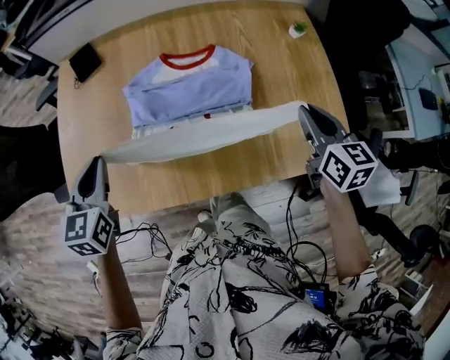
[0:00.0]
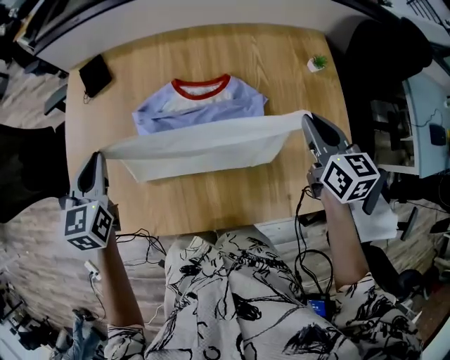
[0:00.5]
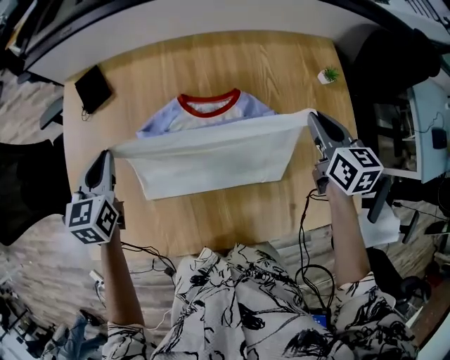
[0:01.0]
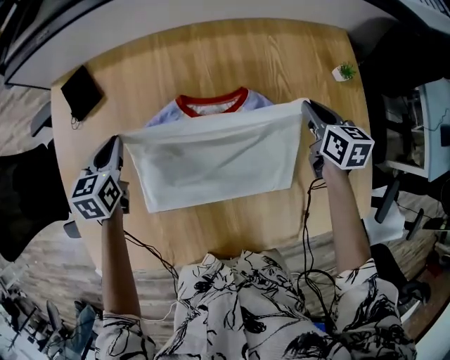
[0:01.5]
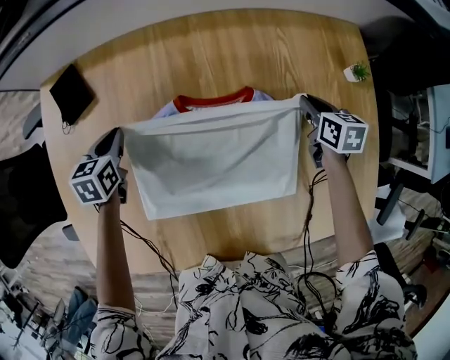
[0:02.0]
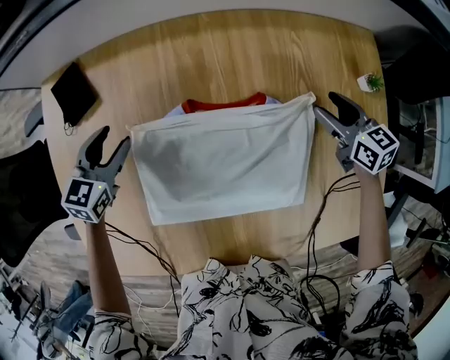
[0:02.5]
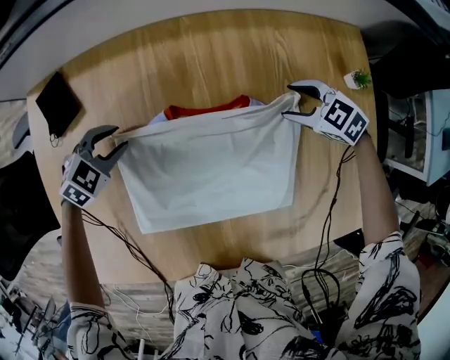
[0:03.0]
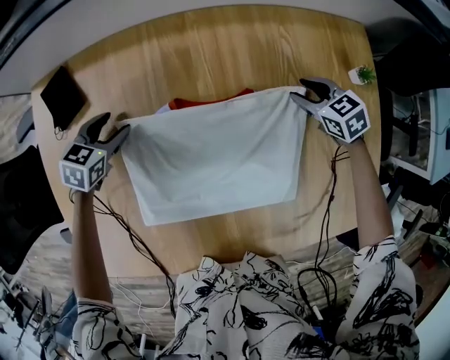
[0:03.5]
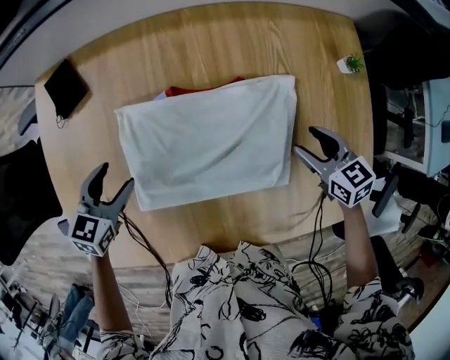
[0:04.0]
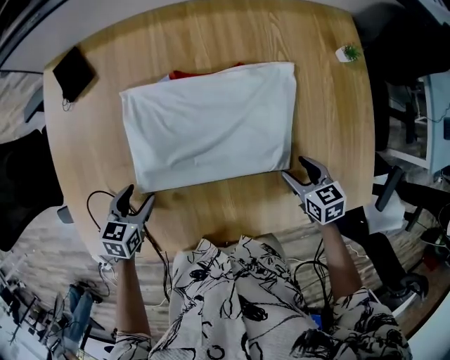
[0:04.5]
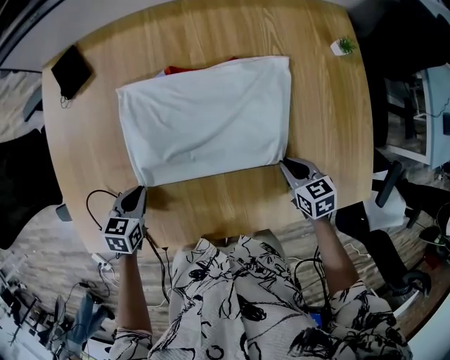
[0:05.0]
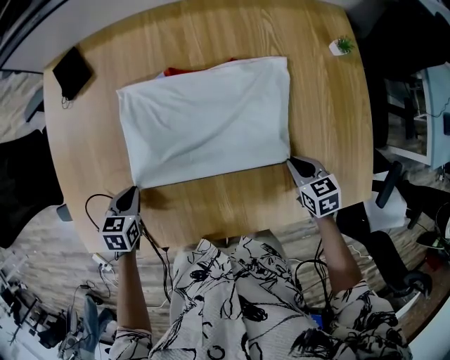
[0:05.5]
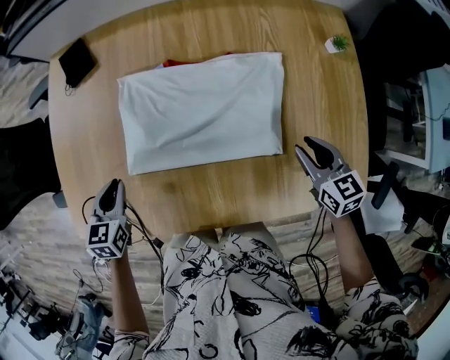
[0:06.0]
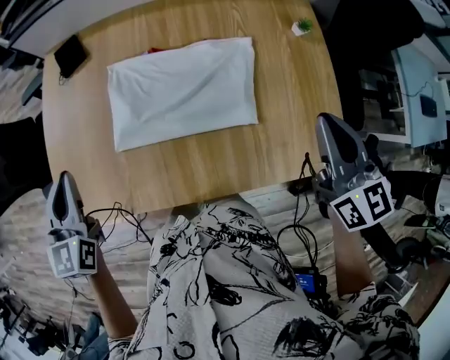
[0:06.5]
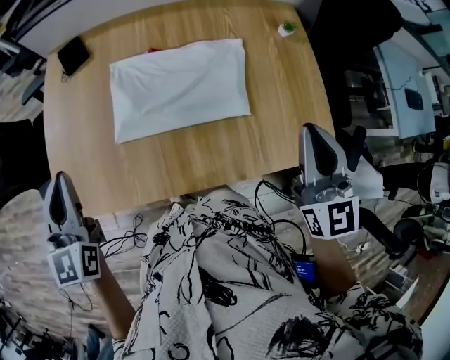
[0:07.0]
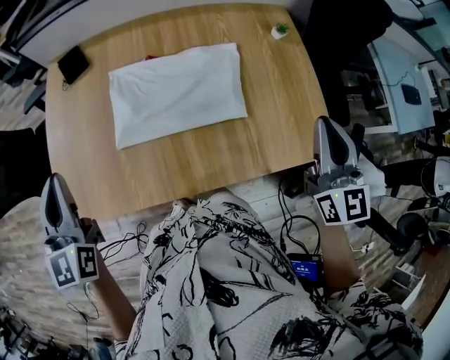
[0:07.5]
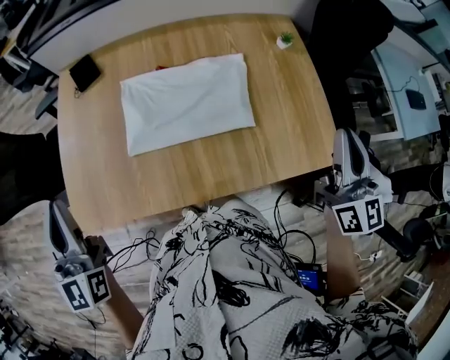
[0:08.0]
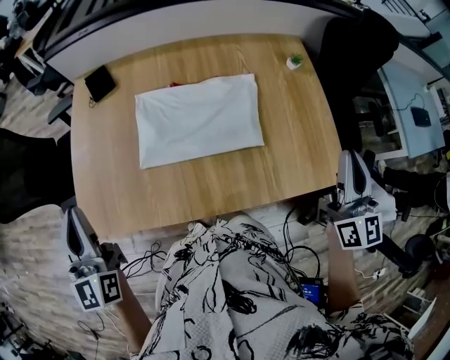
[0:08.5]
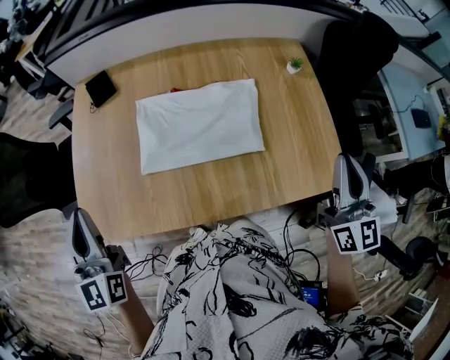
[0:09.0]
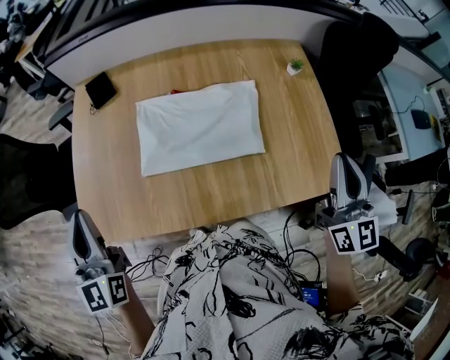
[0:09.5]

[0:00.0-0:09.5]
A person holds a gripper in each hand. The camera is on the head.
0:00.0 to 0:02.0: The grippers both shift forward and downward by approximately 40 cm. The left gripper swivels some 20 degrees, while the right gripper turns by some 20 degrees.
0:02.0 to 0:04.0: The grippers both shift backward and upward by some 15 cm. The left gripper changes its angle by about 20 degrees, and opens its fingers, while the right gripper swivels some 30 degrees, and opens its fingers.
0:04.0 to 0:05.5: Both grippers move backward and downward, roughly 15 cm. The left gripper rotates roughly 20 degrees, and closes. Meanwhile the right gripper closes.
0:05.5 to 0:07.5: Both grippers travel together upward, roughly 35 cm. The left gripper tips its fingers upward by about 50 degrees. The right gripper tilts its fingers approximately 50 degrees upward.

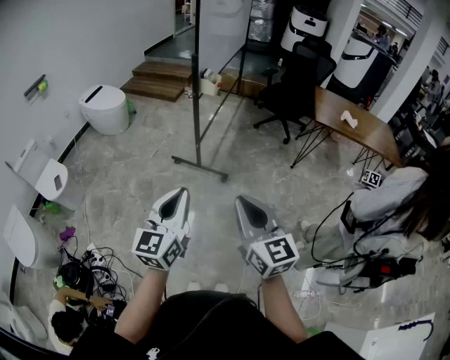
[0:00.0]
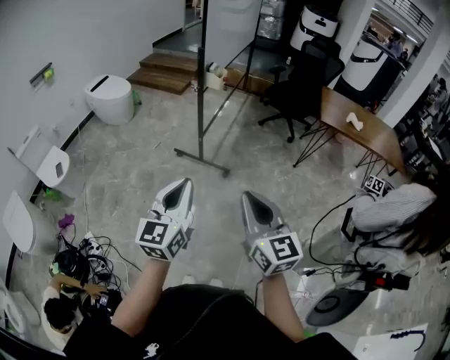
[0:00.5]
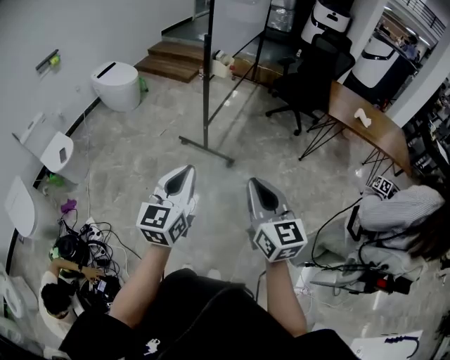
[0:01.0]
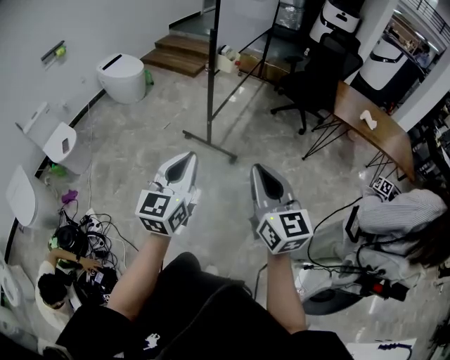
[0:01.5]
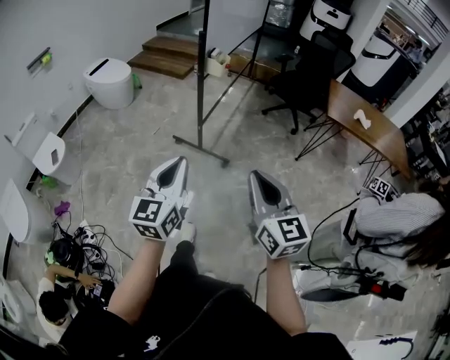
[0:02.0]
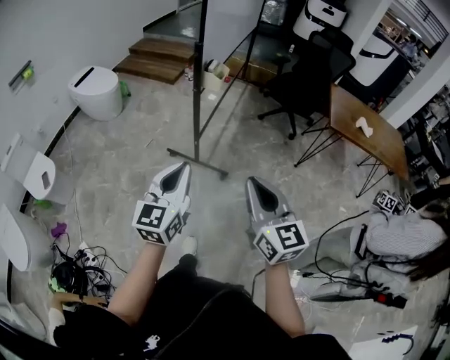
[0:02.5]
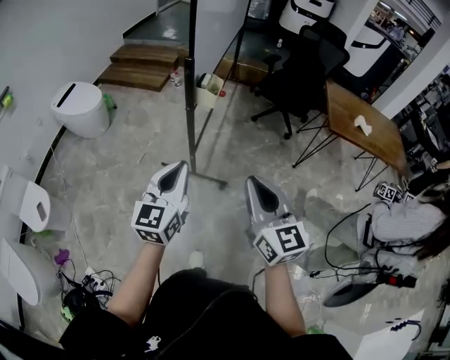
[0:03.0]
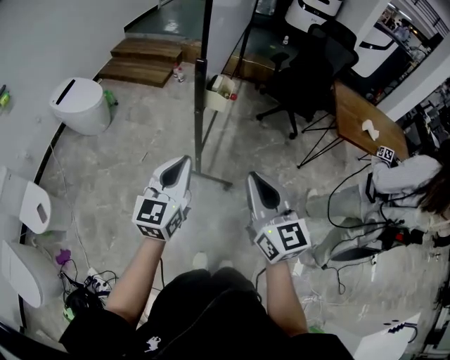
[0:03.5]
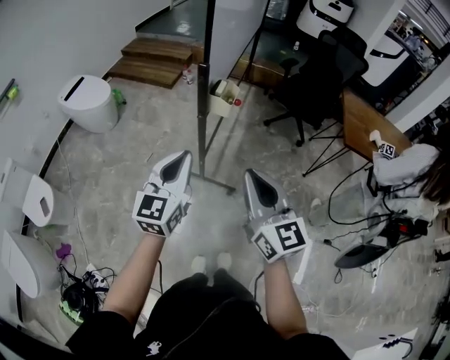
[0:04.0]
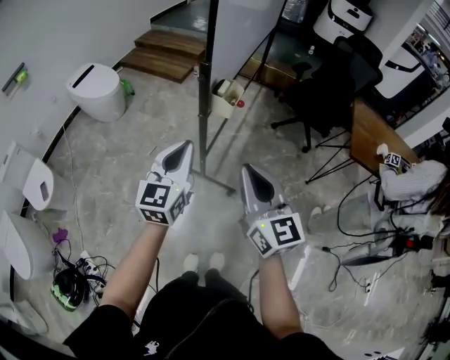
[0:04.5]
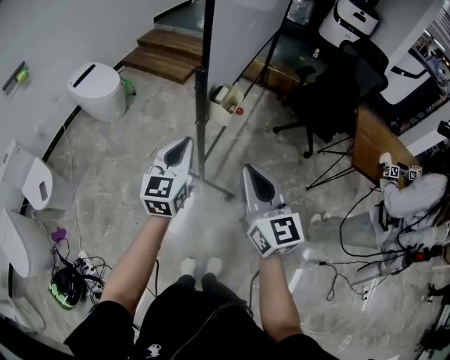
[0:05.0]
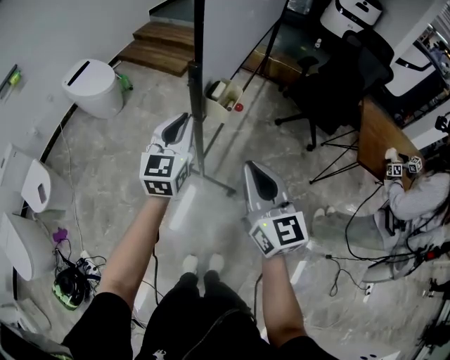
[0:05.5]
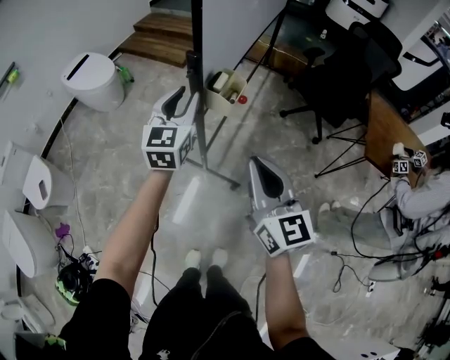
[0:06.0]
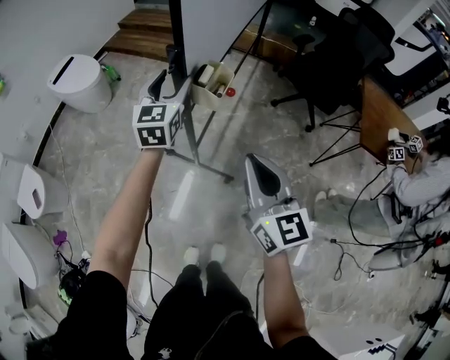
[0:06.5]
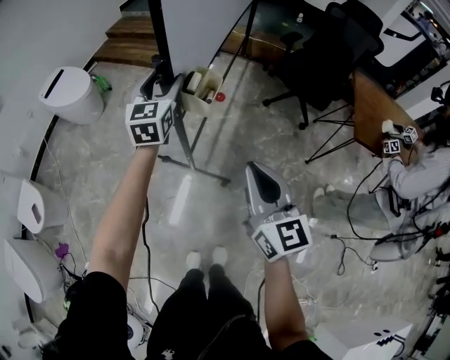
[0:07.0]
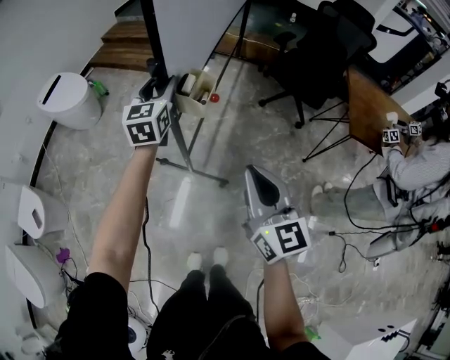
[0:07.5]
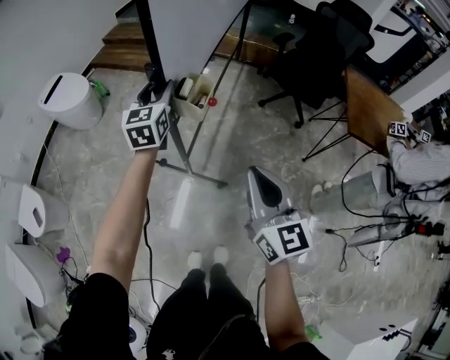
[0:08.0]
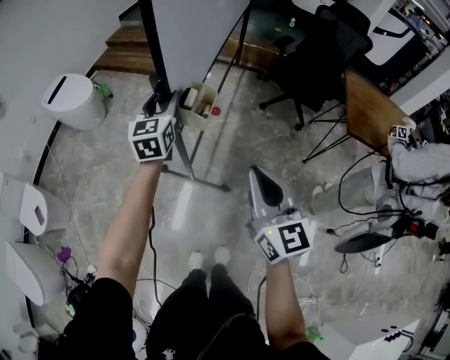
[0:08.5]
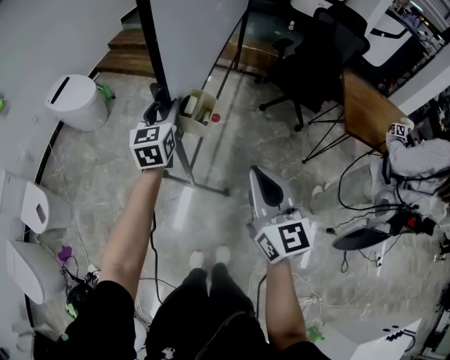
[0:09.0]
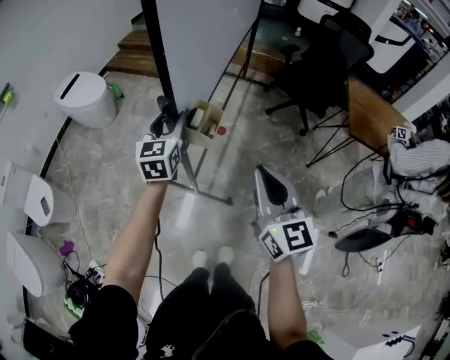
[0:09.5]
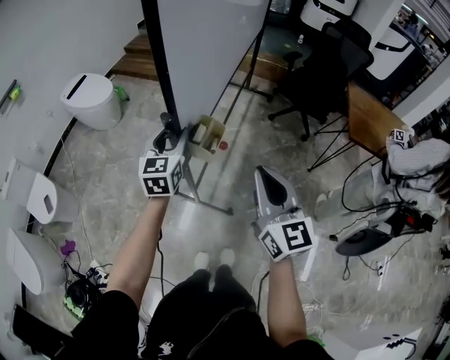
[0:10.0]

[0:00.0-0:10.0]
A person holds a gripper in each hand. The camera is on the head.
0:00.0 to 0:02.0: The left gripper shifts some 10 cm forward, while the right gripper travels forward and to the right by some 10 cm.
0:02.0 to 0:04.0: Both grippers move forward, roughly 35 cm.
0:04.0 to 0:06.0: The left gripper travels forward by some 25 cm, and opens up. The right gripper heads forward, downward and to the right, covering approximately 15 cm.
0:06.0 to 0:08.0: The right gripper ends up approximately 5 cm from where it was. The left gripper is displaced forward by roughly 5 cm.
0:08.0 to 0:10.0: The right gripper moves backward and to the left, some 10 cm, while the left gripper is displaced backward by roughly 20 cm.

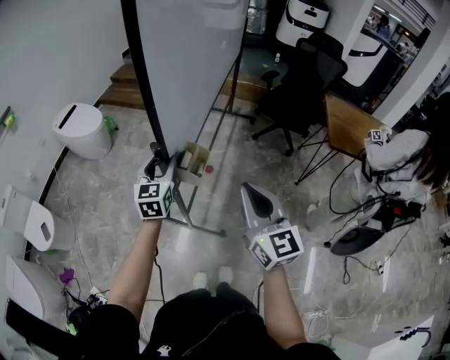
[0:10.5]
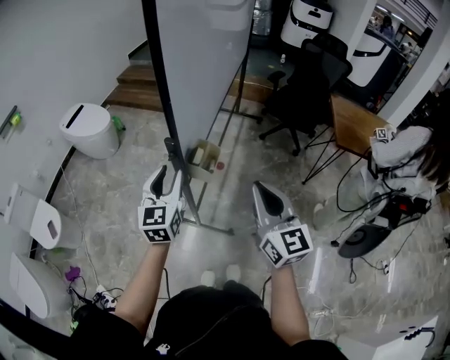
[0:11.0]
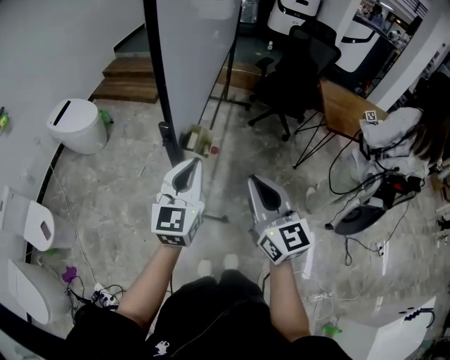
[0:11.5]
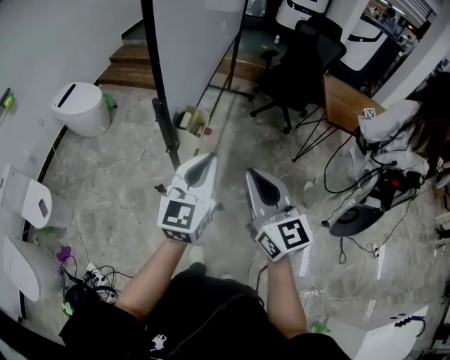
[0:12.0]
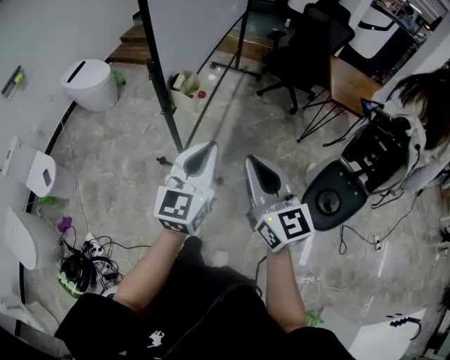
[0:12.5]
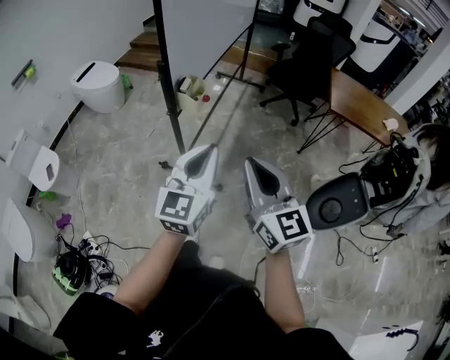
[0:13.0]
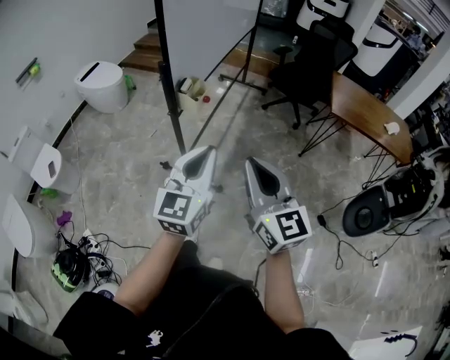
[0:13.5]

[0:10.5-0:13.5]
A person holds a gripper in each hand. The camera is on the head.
0:10.5 to 0:12.0: The left gripper heads backward, to the right and upward, covering about 25 cm, turns by about 20 degrees, and closes; the right gripper is displaced backward by about 10 cm.
0:12.0 to 0:13.5: The left gripper heads backward, covering approximately 15 cm. The right gripper moves backward and to the right, some 15 cm.

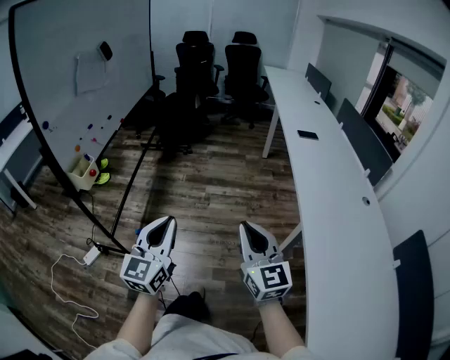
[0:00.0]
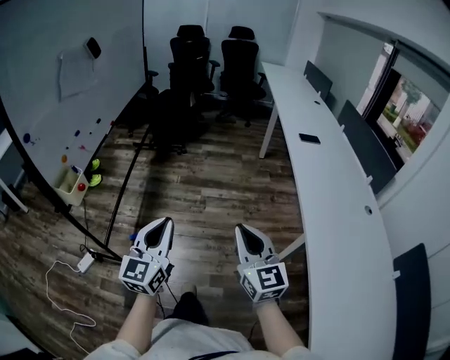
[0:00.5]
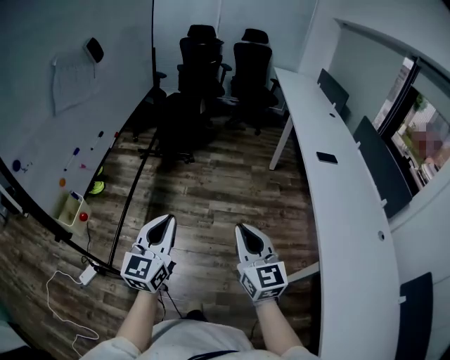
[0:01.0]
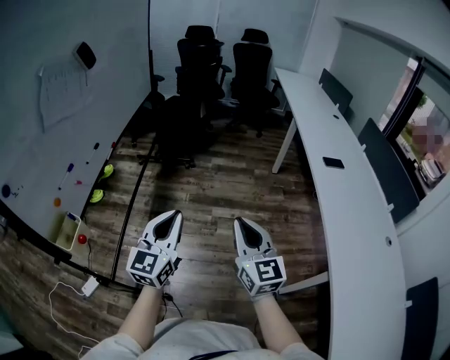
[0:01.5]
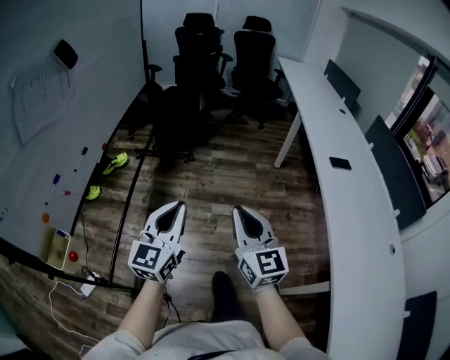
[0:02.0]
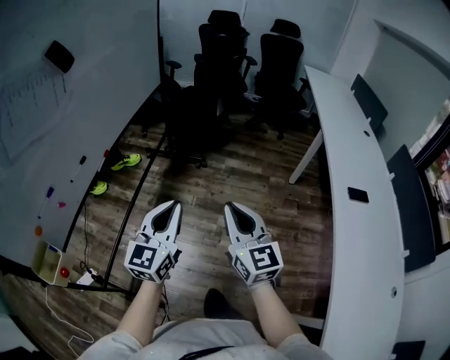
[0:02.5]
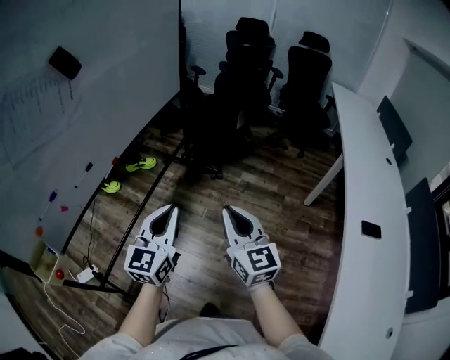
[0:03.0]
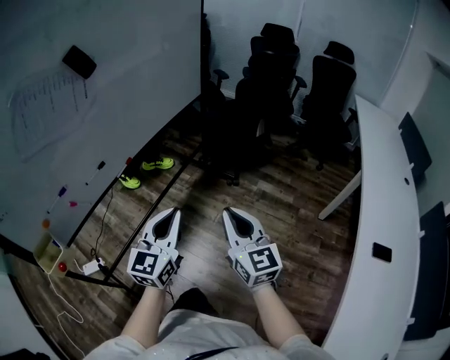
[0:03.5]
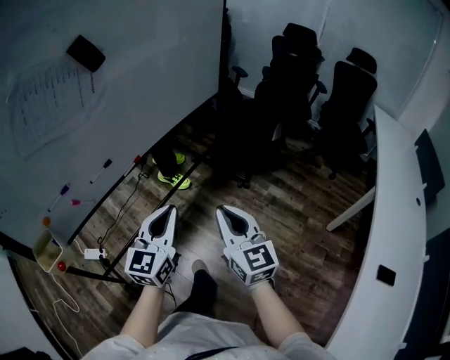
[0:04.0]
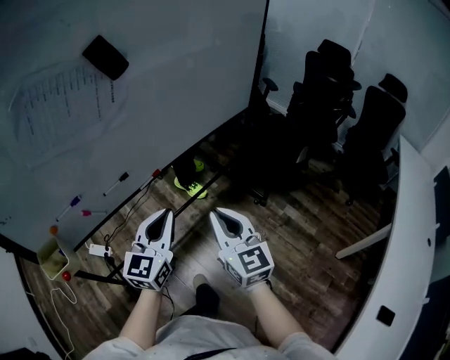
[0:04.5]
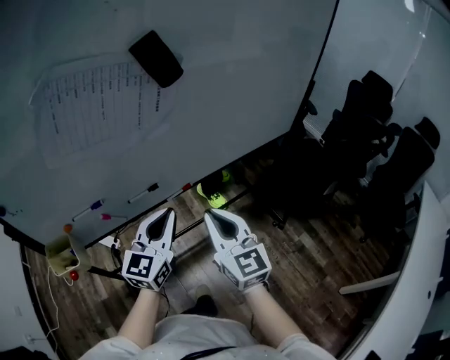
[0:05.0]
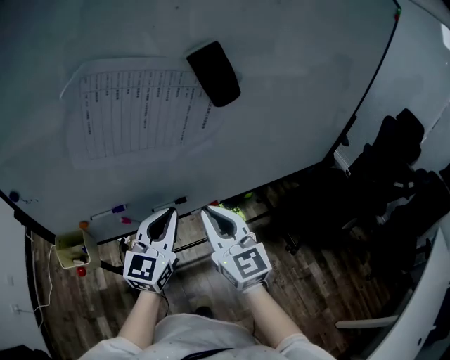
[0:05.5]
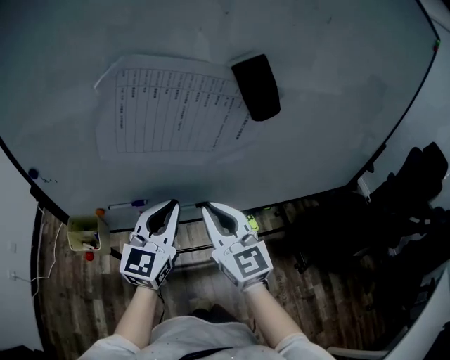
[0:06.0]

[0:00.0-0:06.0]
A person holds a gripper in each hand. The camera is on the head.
0:00.0 to 0:02.0: The two grippers travel together, forward, some 50 cm.
0:02.0 to 0:04.0: The left gripper ends up roughly 25 cm from where it was, and swivels approximately 30 degrees. The right gripper ends up about 30 cm from where it was, and turns by roughly 40 degrees.
0:04.0 to 0:06.0: The left gripper shifts by approximately 30 cm, and rotates some 40 degrees; the right gripper moves roughly 40 cm, and changes its angle by approximately 50 degrees.
